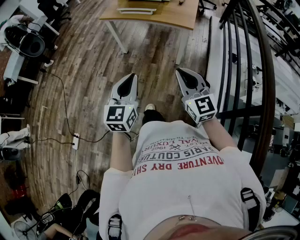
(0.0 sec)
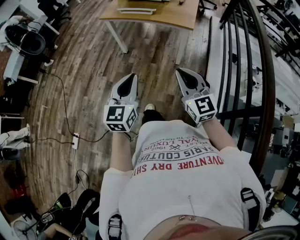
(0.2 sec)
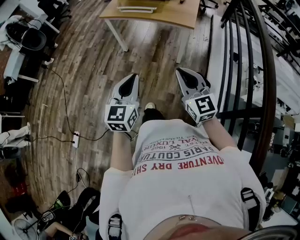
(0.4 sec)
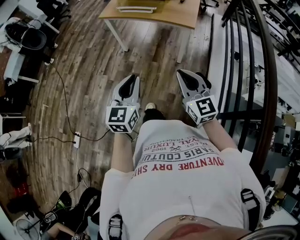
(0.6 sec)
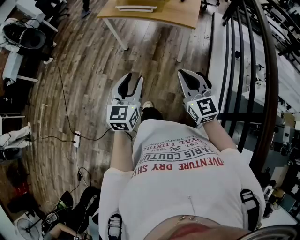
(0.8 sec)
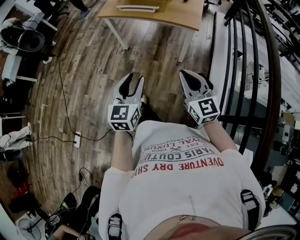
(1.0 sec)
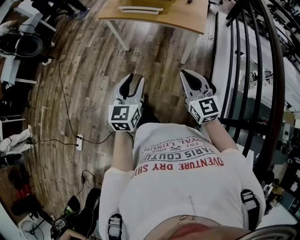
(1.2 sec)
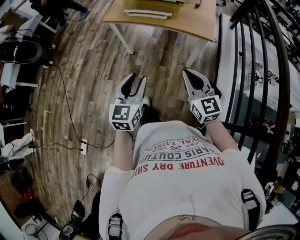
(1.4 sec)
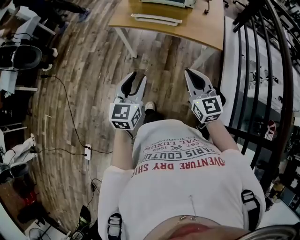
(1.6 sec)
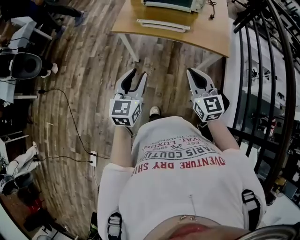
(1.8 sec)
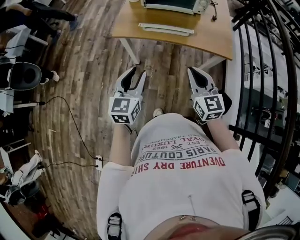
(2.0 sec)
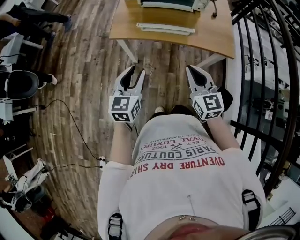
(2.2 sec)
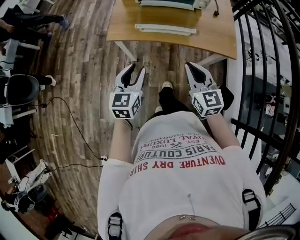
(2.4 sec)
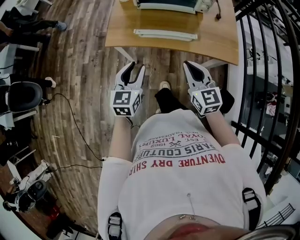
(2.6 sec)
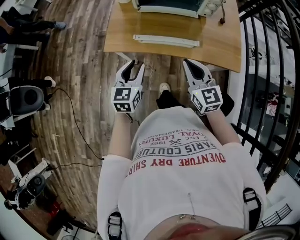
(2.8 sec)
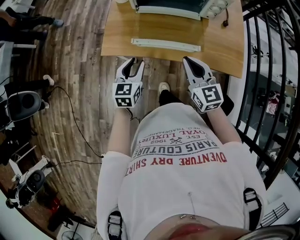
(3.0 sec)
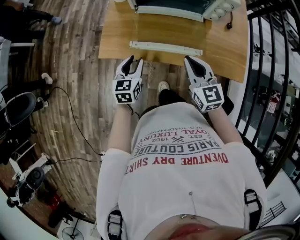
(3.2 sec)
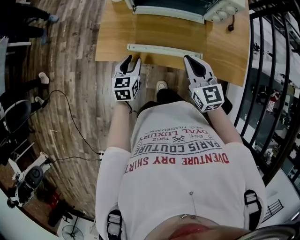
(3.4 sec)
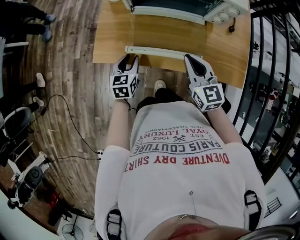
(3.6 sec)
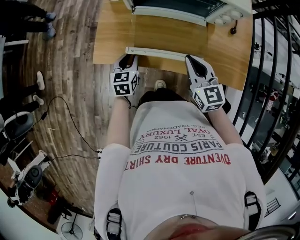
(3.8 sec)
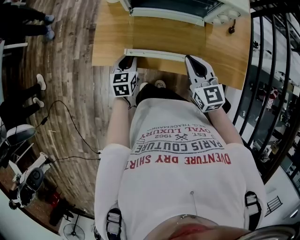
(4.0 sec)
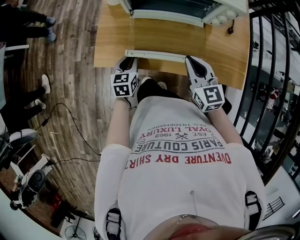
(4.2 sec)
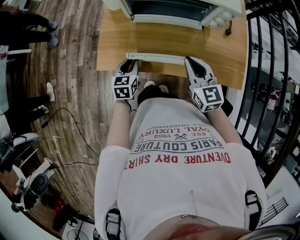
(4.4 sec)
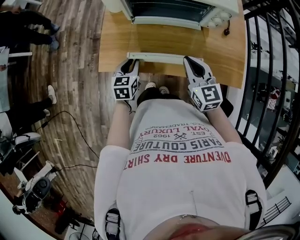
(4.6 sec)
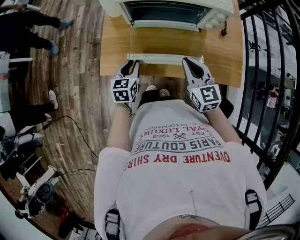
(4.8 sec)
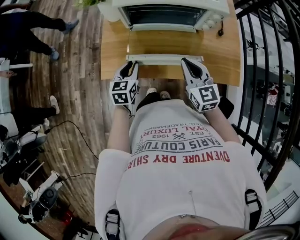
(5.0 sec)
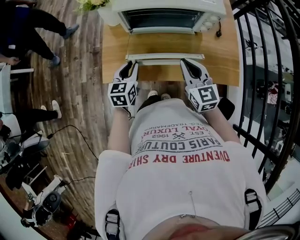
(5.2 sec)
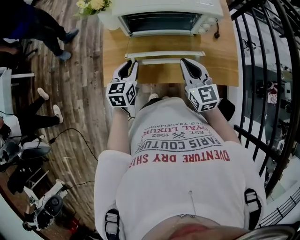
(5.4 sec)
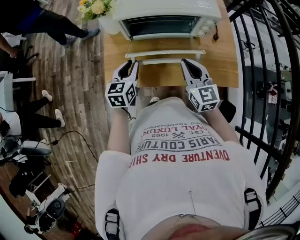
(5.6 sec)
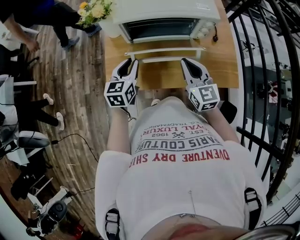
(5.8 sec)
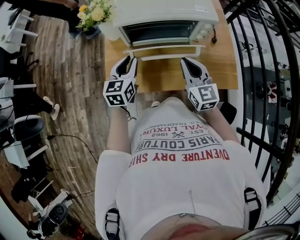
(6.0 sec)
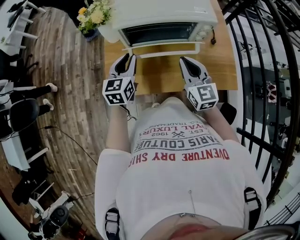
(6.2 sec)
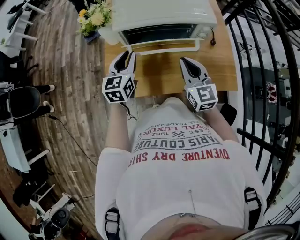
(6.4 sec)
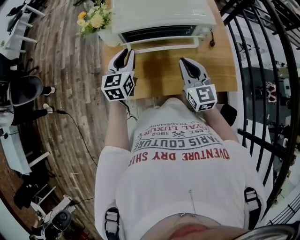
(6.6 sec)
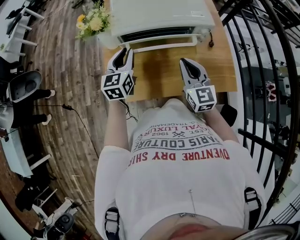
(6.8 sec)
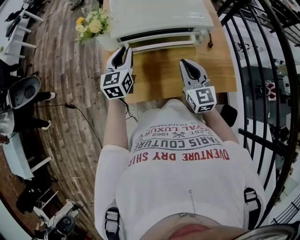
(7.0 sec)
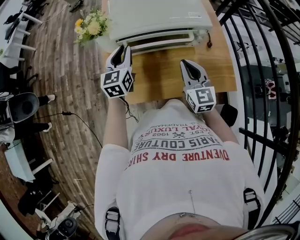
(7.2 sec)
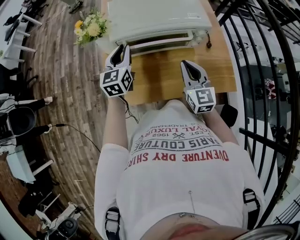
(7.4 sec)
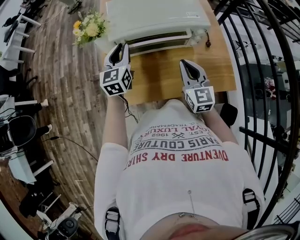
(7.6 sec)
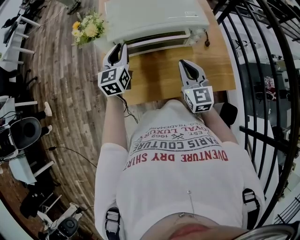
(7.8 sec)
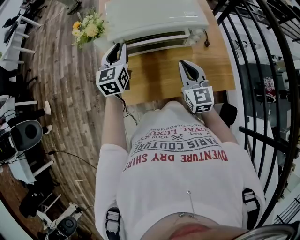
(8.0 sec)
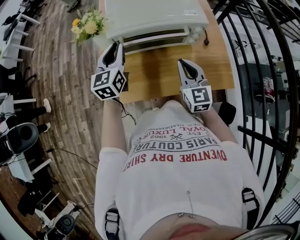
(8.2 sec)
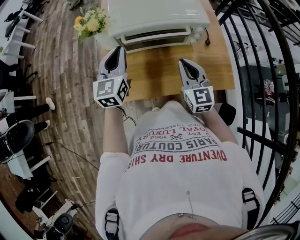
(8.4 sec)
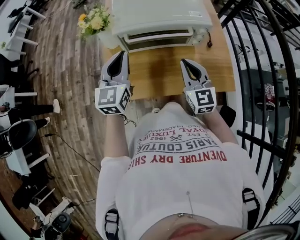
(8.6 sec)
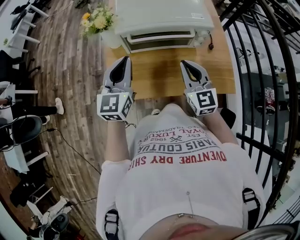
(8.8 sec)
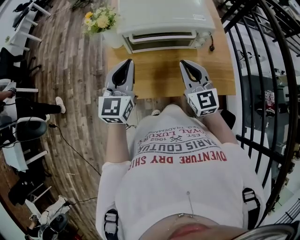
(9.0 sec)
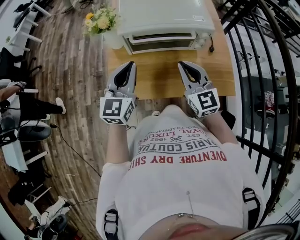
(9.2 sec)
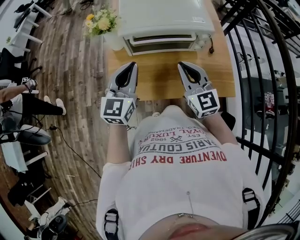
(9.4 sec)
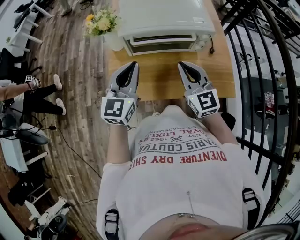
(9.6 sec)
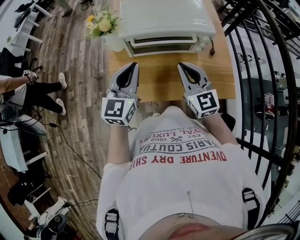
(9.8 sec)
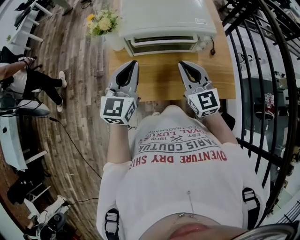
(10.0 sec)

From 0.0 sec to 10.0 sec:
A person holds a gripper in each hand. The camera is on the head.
From 0.0 sec to 1.4 sec: Both grippers travel together forward, about 20 cm. The left gripper opens its fingers.
From 1.4 sec to 2.8 sec: Both grippers travel together forward, about 40 cm.
From 2.8 sec to 4.2 sec: The right gripper heads forward and downward, covering some 15 cm, while the left gripper is displaced downward and forward by about 20 cm.
From 4.2 sec to 5.8 sec: The right gripper shifts approximately 10 cm upward; the left gripper travels upward by roughly 15 cm.
From 5.8 sec to 7.2 sec: The left gripper moves forward and upward, approximately 10 cm.
From 7.2 sec to 8.6 sec: The left gripper shifts about 10 cm backward and upward.
From 8.6 sec to 10.0 sec: The grippers stay close to where they were, moving slightly.

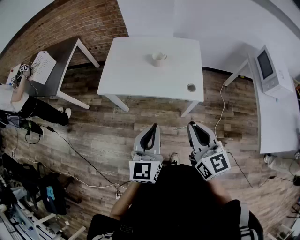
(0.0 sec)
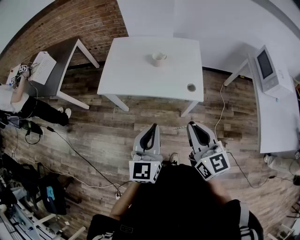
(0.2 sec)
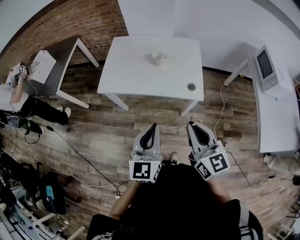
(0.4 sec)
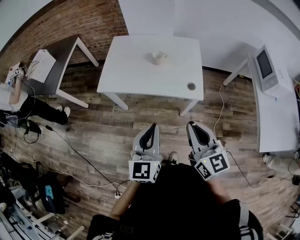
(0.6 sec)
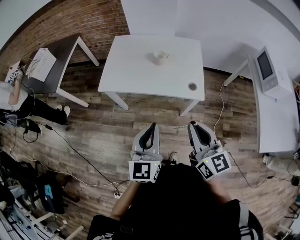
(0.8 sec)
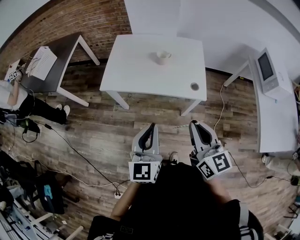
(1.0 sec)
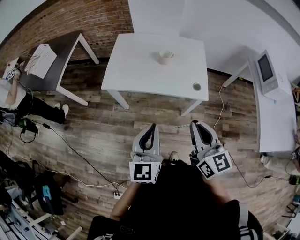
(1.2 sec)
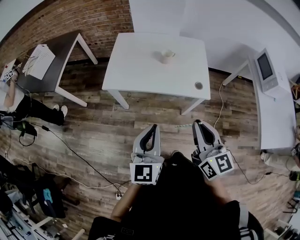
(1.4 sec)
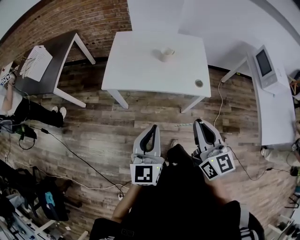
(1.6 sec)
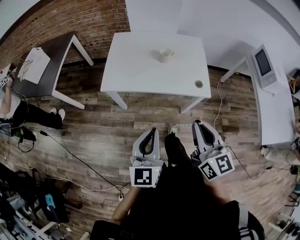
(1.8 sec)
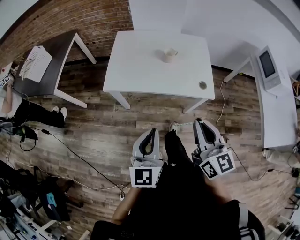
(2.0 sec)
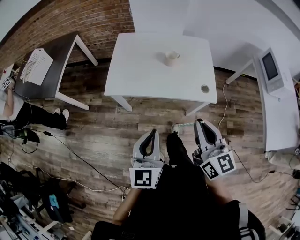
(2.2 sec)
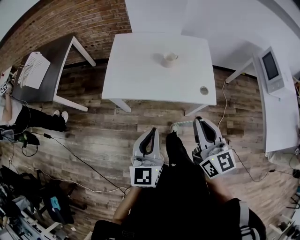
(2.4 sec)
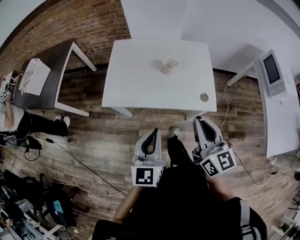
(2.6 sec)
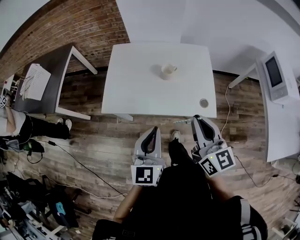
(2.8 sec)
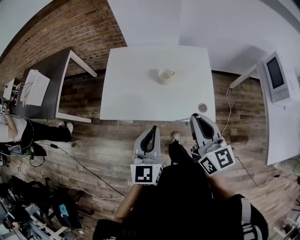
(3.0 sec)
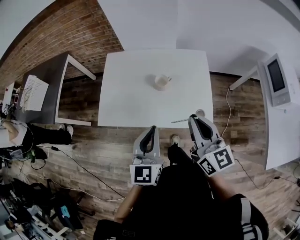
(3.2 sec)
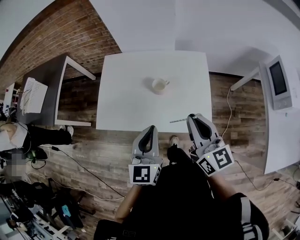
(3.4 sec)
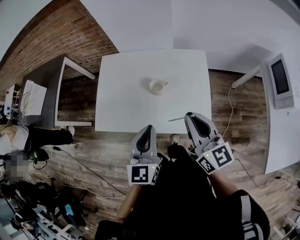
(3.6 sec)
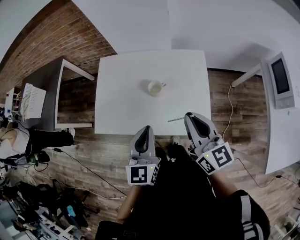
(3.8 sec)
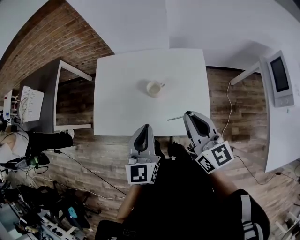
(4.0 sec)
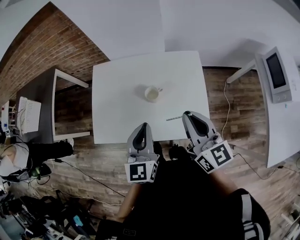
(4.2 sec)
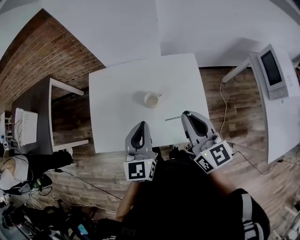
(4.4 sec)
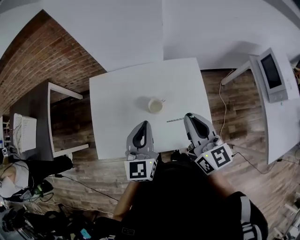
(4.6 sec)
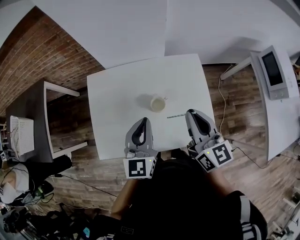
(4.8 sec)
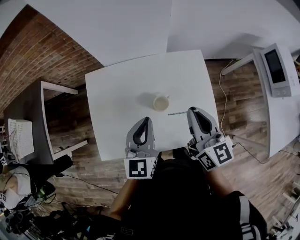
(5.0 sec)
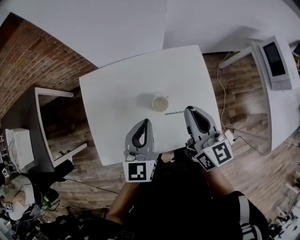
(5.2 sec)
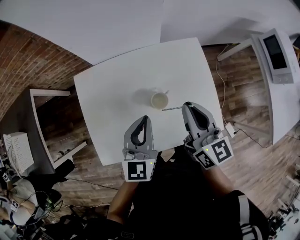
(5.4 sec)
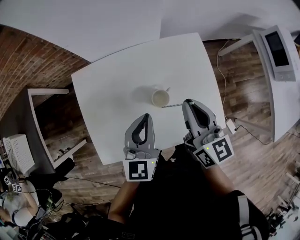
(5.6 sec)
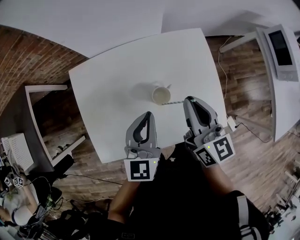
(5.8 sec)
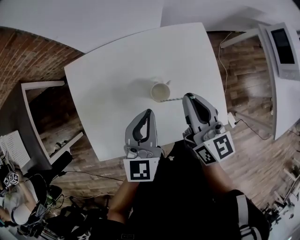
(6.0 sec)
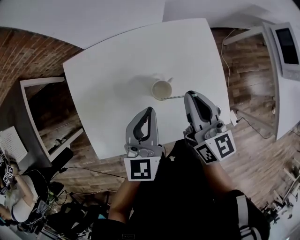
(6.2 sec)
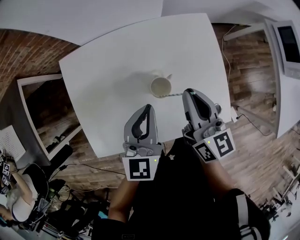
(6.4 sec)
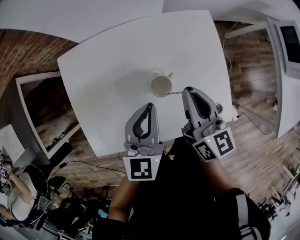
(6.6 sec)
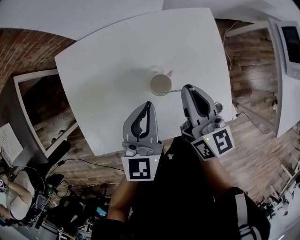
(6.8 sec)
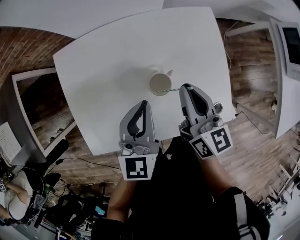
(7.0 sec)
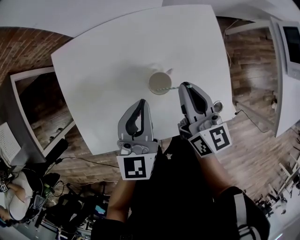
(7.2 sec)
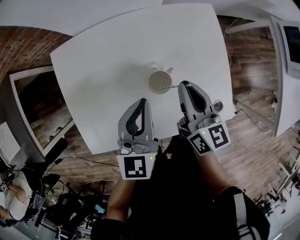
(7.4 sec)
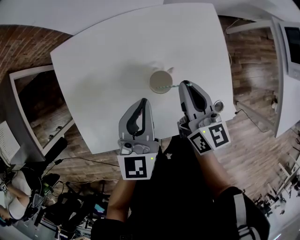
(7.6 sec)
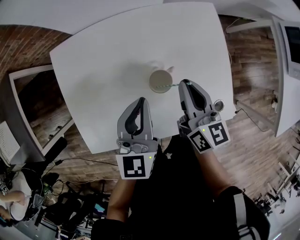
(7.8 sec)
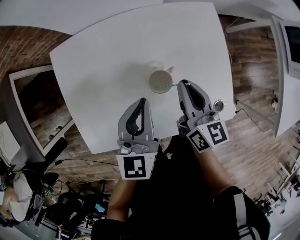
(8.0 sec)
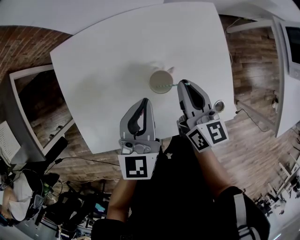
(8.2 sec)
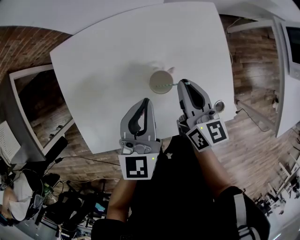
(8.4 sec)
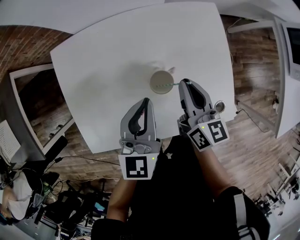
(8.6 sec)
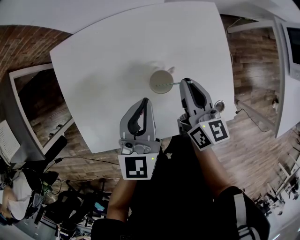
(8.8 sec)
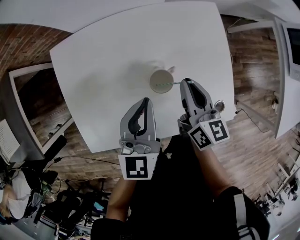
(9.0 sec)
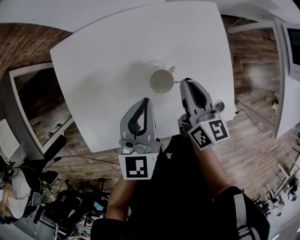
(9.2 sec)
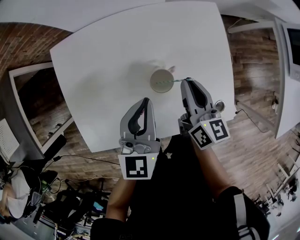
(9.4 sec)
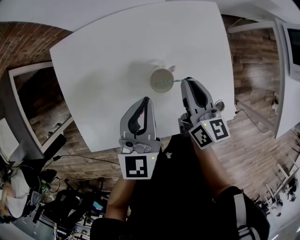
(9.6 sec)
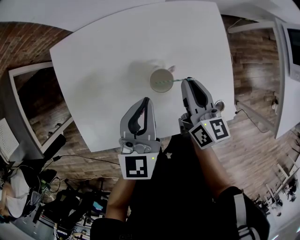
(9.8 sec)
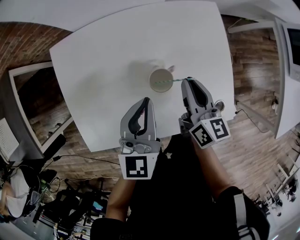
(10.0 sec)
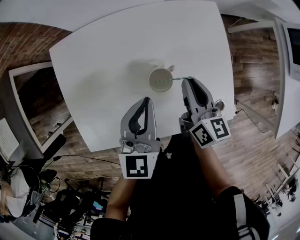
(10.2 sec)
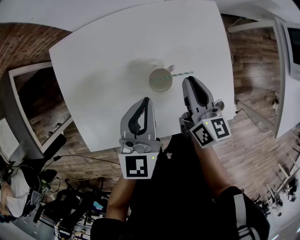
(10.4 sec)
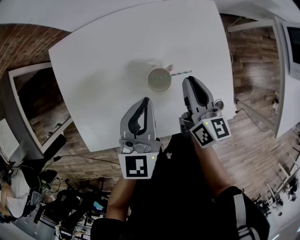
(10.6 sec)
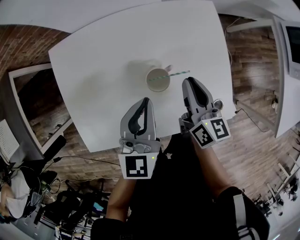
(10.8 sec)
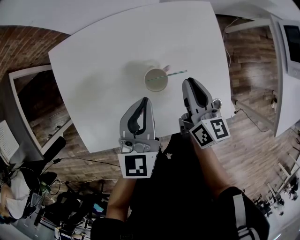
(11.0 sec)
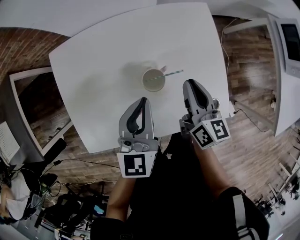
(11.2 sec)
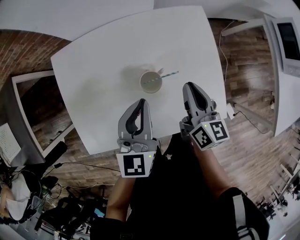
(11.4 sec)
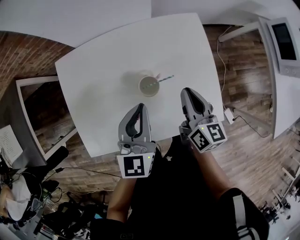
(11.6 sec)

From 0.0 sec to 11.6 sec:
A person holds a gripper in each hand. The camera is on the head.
From 0.0 sec to 1.4 sec: The grippers both shift to the left by roughly 10 cm.
From 1.4 sec to 2.8 sec: Both grippers move forward, some 15 cm.
From 2.8 sec to 4.4 sec: Both grippers move forward, approximately 20 cm.
From 4.4 sec to 5.8 sec: The left gripper heads forward and downward, covering about 10 cm. The right gripper heads forward, downward and to the left, covering approximately 15 cm.
From 5.8 sec to 7.2 sec: The right gripper goes approximately 10 cm downward. The left gripper heads downward, covering about 5 cm.
From 7.2 sec to 10.2 sec: The grippers move only a little.
From 10.2 sec to 11.6 sec: The right gripper changes place by some 5 cm.

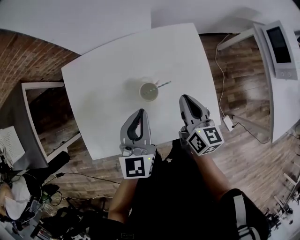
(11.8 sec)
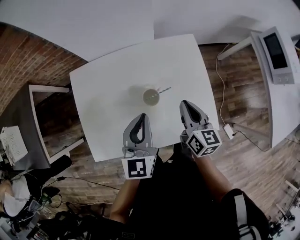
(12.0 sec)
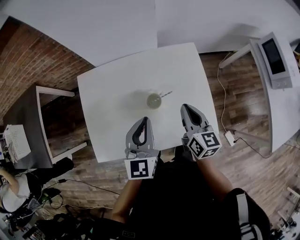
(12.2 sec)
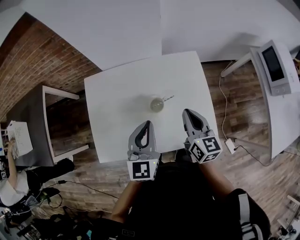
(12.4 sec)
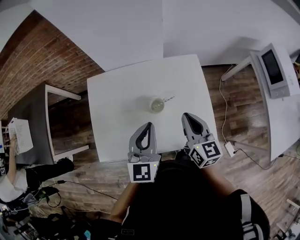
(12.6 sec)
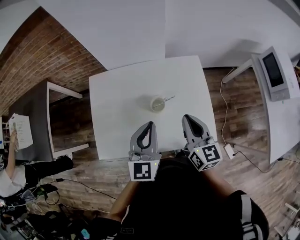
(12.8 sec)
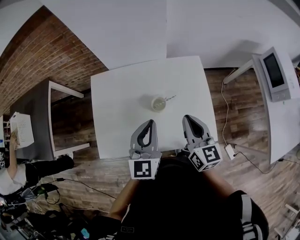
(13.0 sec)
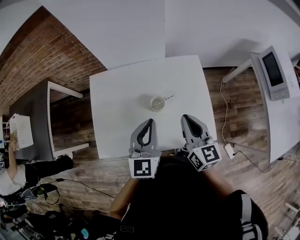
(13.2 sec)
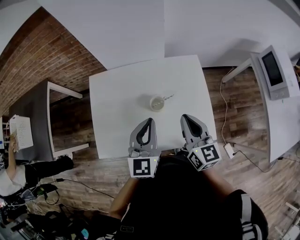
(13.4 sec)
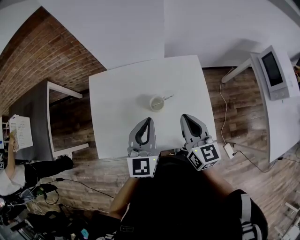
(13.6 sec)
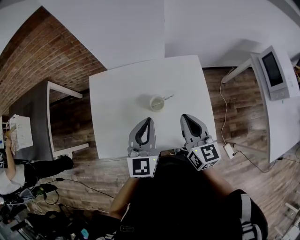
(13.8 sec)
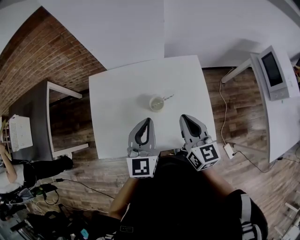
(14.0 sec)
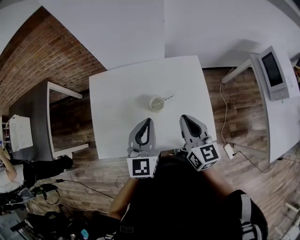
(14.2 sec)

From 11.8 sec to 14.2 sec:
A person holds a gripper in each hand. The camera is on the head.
From 11.8 sec to 13.0 sec: The left gripper travels upward by about 10 cm. The right gripper goes approximately 15 cm upward and backward.
From 13.0 sec to 14.2 sec: Neither gripper changes place.
